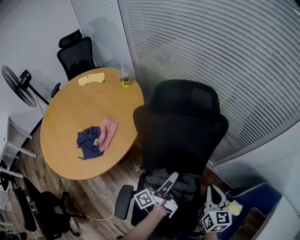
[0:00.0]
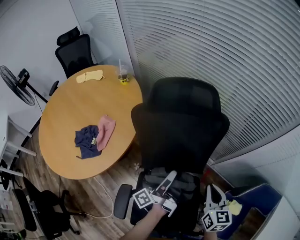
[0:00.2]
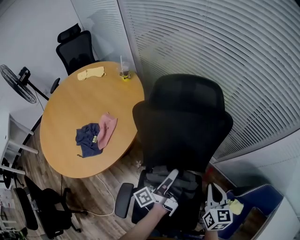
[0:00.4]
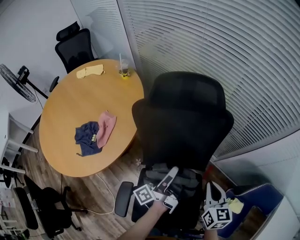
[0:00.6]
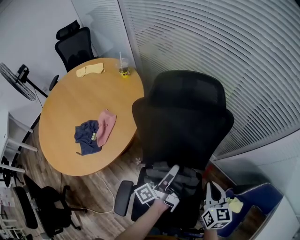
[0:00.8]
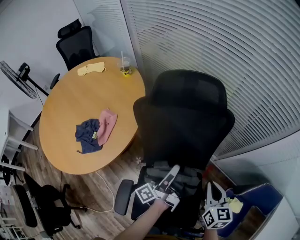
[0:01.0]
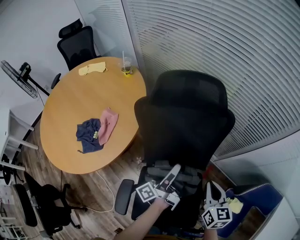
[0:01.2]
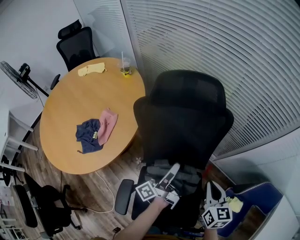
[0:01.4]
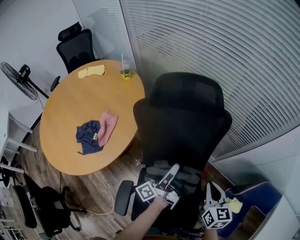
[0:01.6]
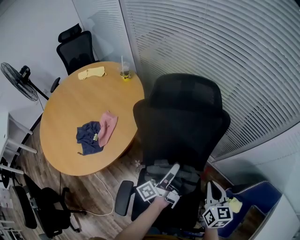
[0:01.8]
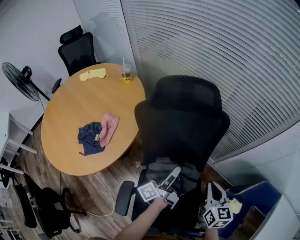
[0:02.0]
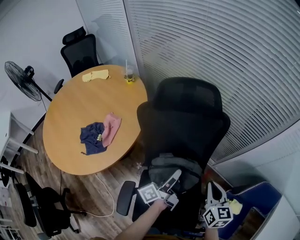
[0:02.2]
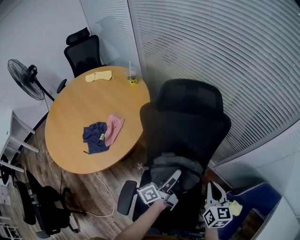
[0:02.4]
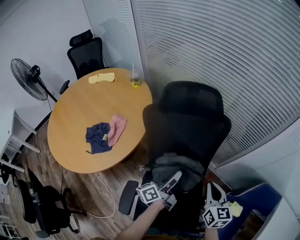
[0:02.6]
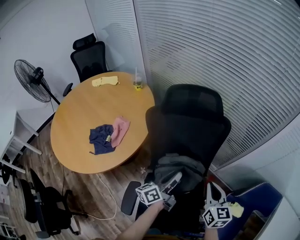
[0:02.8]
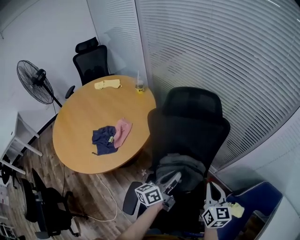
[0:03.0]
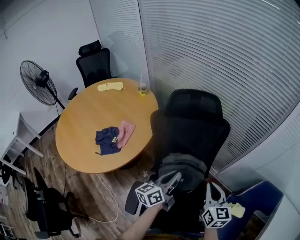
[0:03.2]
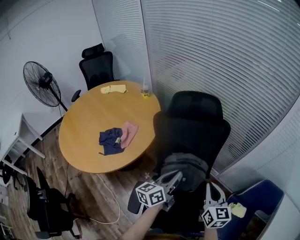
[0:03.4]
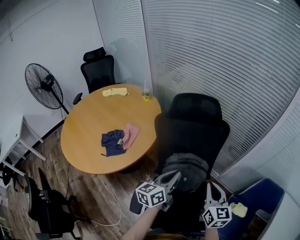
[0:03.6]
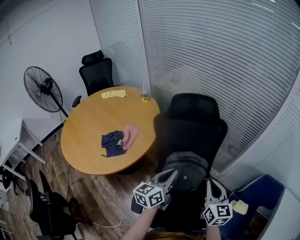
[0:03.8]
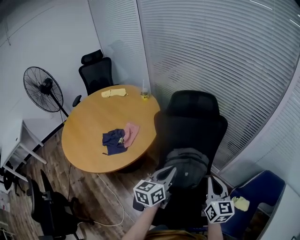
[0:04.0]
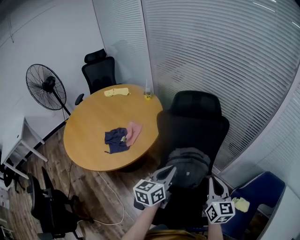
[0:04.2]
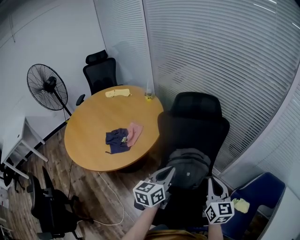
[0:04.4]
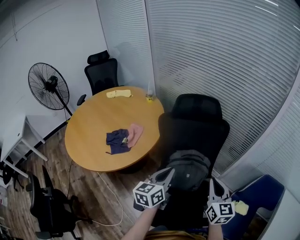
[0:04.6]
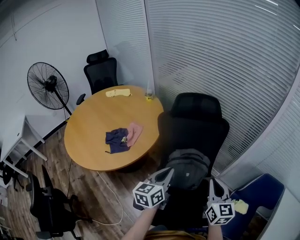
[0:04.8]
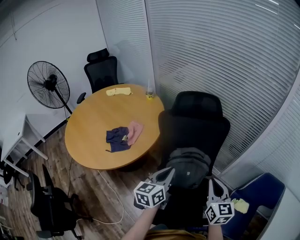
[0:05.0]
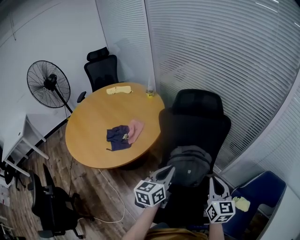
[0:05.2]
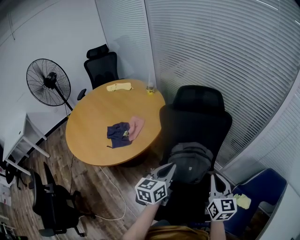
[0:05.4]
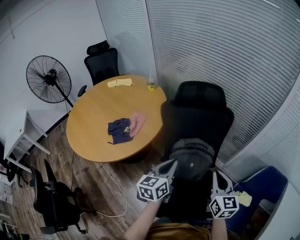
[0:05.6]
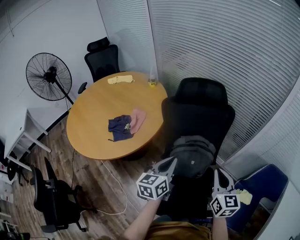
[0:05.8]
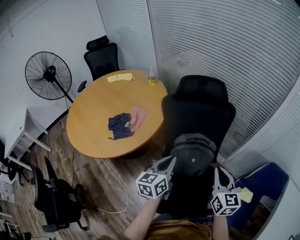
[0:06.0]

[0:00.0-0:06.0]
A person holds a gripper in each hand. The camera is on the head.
0:01.6 to 0:03.0: The right gripper is displaced upward by about 5 cm.
0:03.0 to 0:04.4: The right gripper moves about 10 cm.

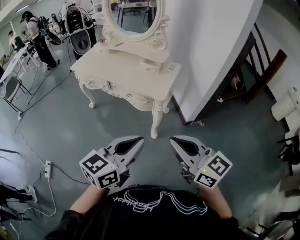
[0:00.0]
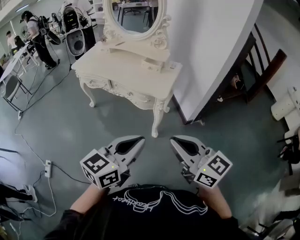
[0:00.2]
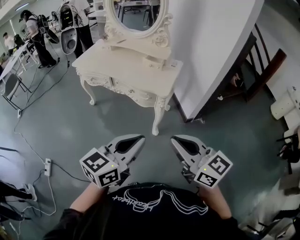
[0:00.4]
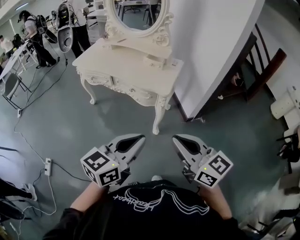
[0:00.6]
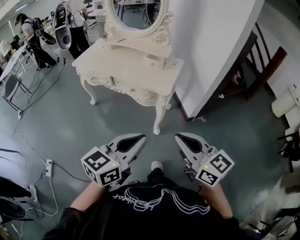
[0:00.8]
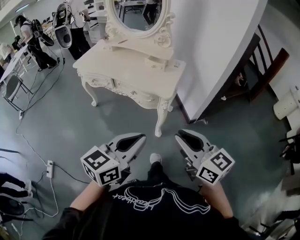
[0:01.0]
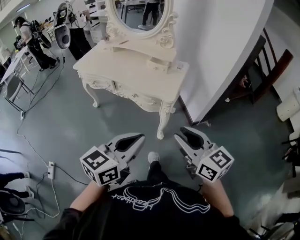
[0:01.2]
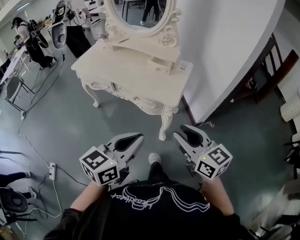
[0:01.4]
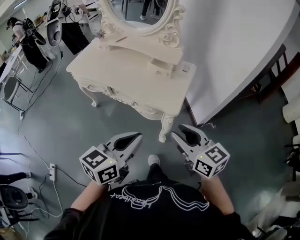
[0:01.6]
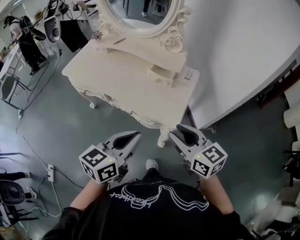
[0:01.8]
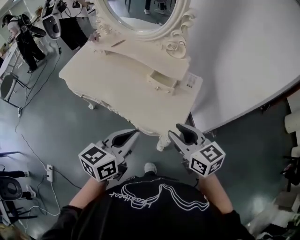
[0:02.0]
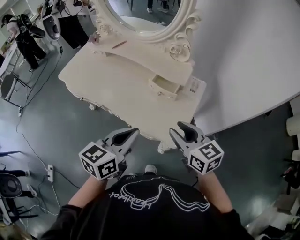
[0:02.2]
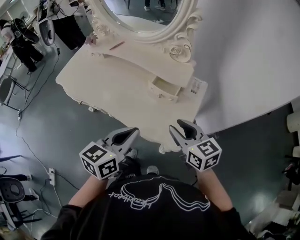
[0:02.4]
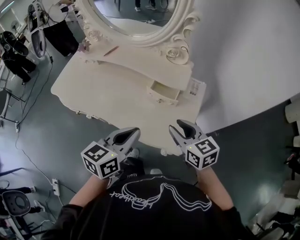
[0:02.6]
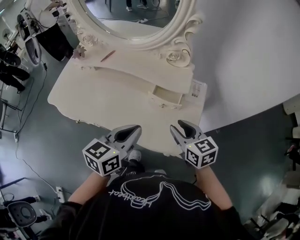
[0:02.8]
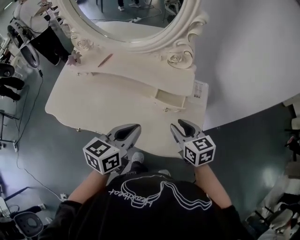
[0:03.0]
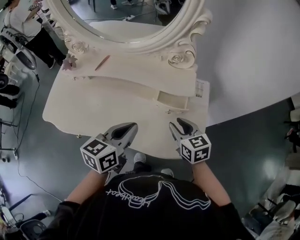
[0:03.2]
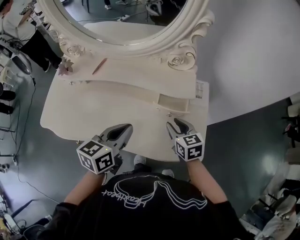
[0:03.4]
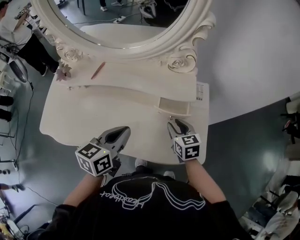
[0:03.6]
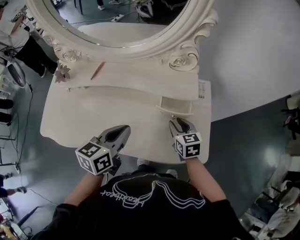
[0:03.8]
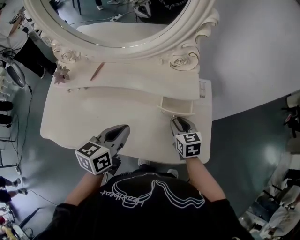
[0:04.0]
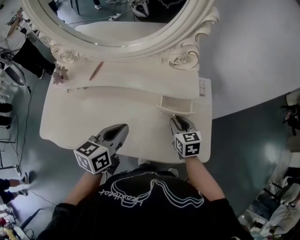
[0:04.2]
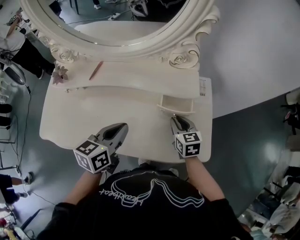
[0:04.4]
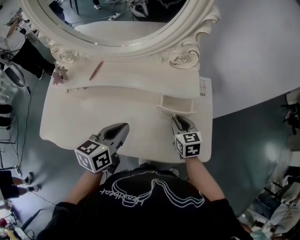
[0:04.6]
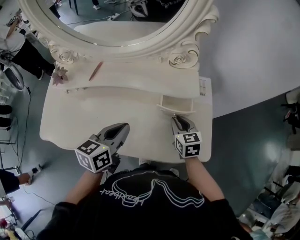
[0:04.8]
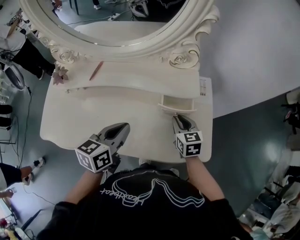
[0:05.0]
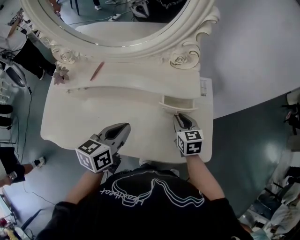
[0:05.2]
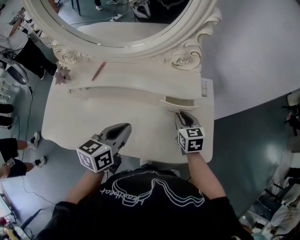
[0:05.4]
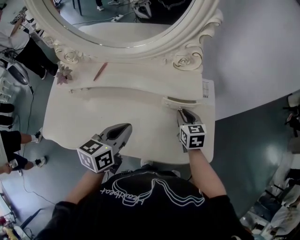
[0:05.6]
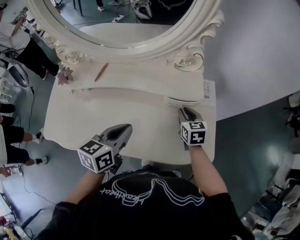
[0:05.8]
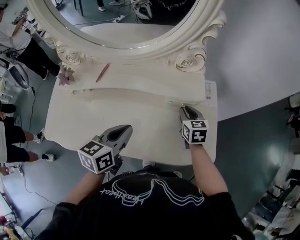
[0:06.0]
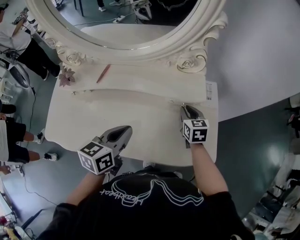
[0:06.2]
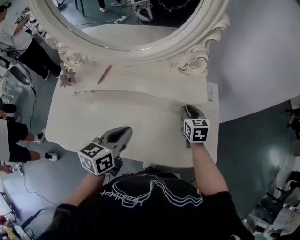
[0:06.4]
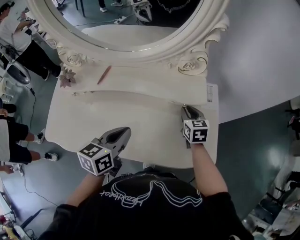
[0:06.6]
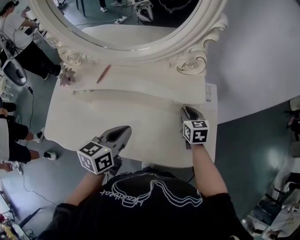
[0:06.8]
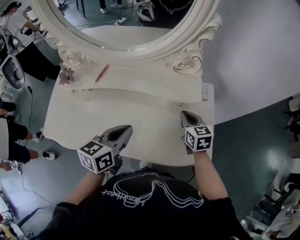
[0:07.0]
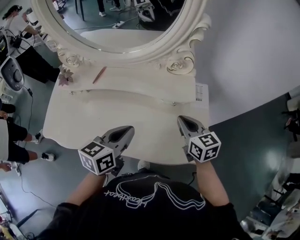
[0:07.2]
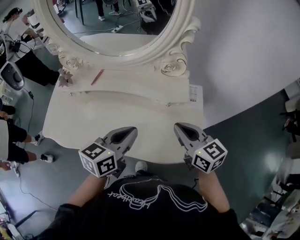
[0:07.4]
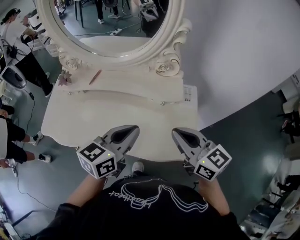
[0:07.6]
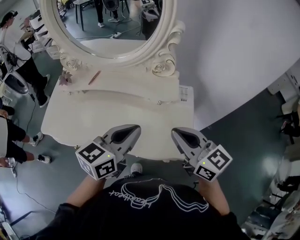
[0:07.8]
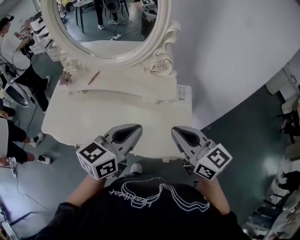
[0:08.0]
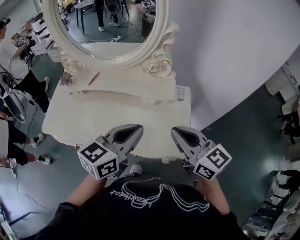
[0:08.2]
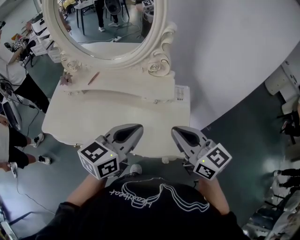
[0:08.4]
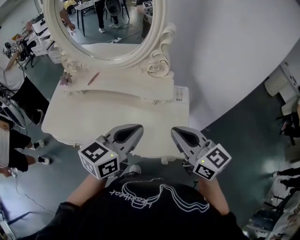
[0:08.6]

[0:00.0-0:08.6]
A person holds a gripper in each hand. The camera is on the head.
0:00.0 to 0:01.4: The left gripper heads forward, covering roughly 10 cm. The right gripper shifts about 15 cm forward and downward, and opens up.
0:01.4 to 0:02.8: Both grippers move forward, about 40 cm. The right gripper swivels roughly 20 degrees.
0:02.8 to 0:04.4: The left gripper is displaced to the left, forward and downward by roughly 20 cm, while the right gripper moves downward, forward and to the left, some 15 cm, and changes its angle by about 30 degrees.
0:04.4 to 0:05.8: The right gripper moves forward, some 5 cm.
0:05.8 to 0:07.2: The right gripper goes some 10 cm upward and backward, and rotates about 20 degrees.
0:07.2 to 0:08.6: The right gripper goes some 20 cm upward and backward, and rotates roughly 20 degrees. Meanwhile the left gripper is displaced to the right, upward and backward by about 20 cm.

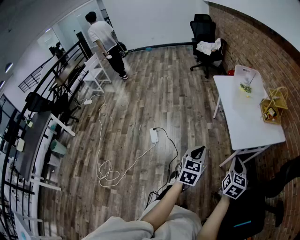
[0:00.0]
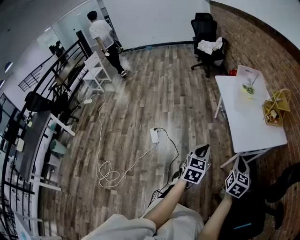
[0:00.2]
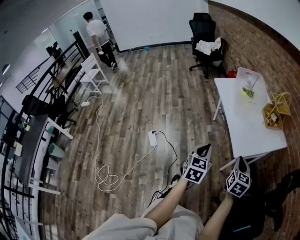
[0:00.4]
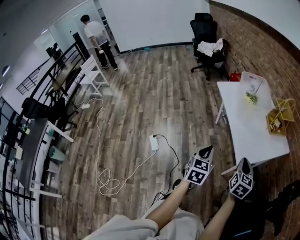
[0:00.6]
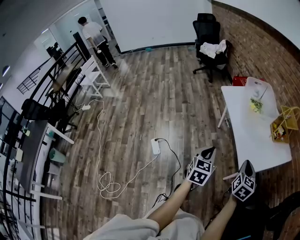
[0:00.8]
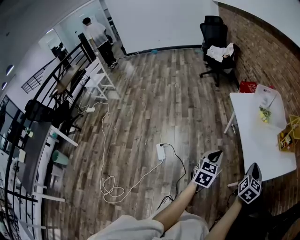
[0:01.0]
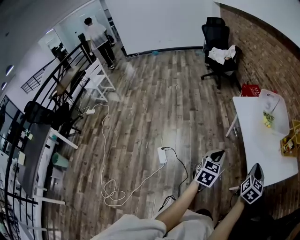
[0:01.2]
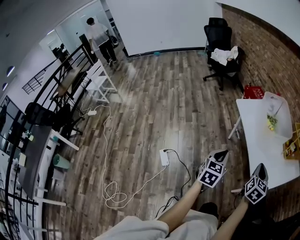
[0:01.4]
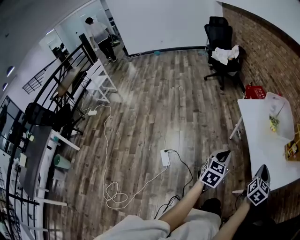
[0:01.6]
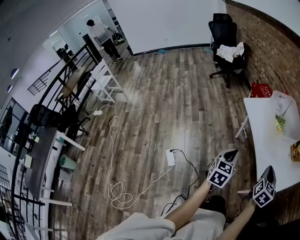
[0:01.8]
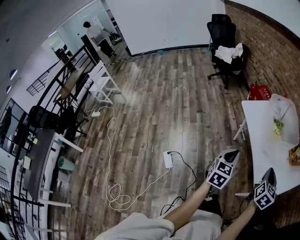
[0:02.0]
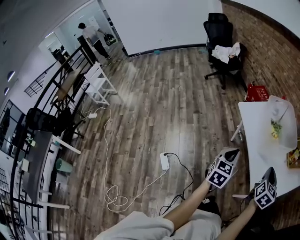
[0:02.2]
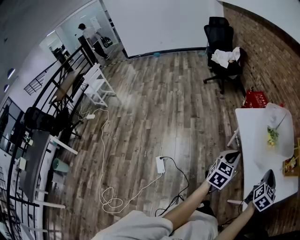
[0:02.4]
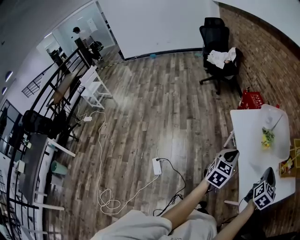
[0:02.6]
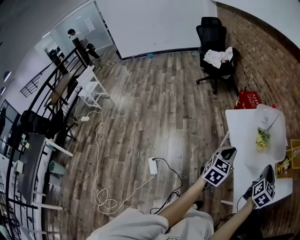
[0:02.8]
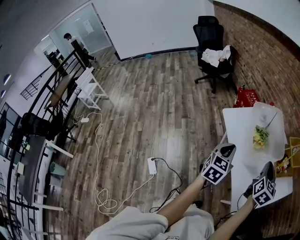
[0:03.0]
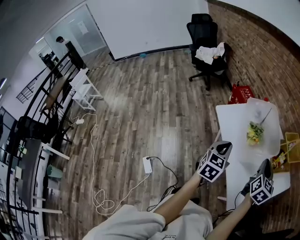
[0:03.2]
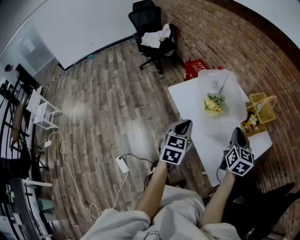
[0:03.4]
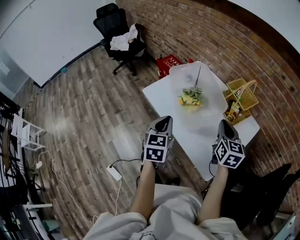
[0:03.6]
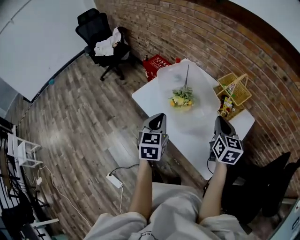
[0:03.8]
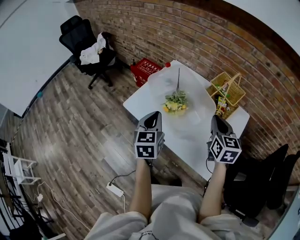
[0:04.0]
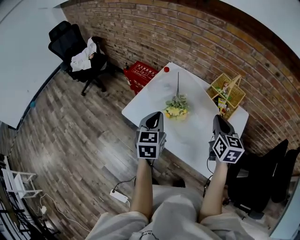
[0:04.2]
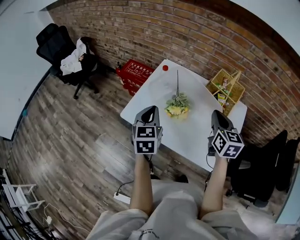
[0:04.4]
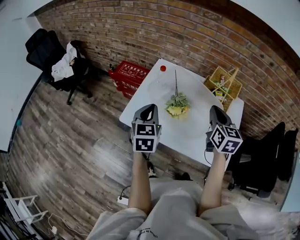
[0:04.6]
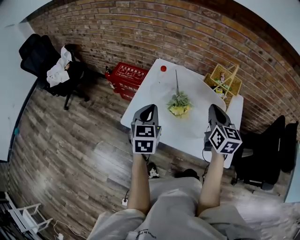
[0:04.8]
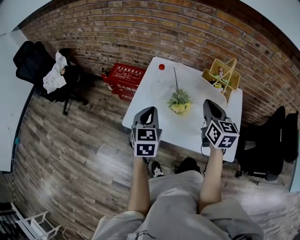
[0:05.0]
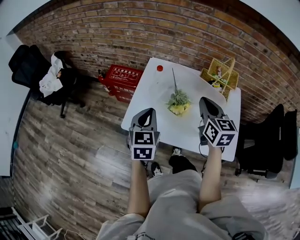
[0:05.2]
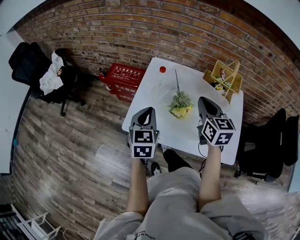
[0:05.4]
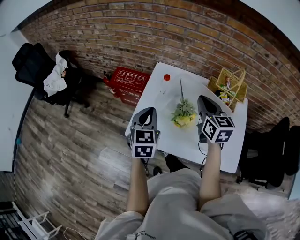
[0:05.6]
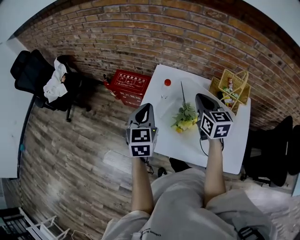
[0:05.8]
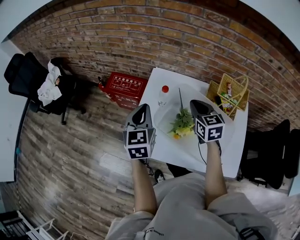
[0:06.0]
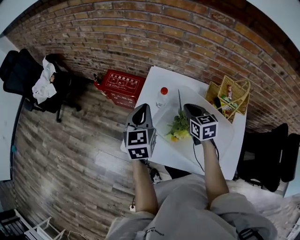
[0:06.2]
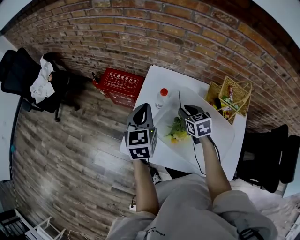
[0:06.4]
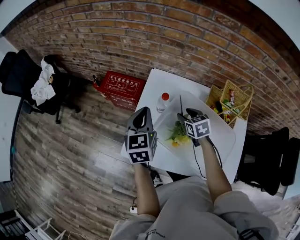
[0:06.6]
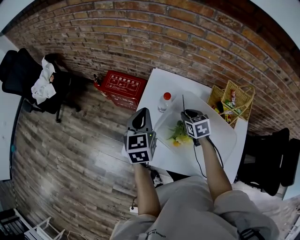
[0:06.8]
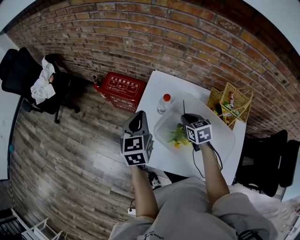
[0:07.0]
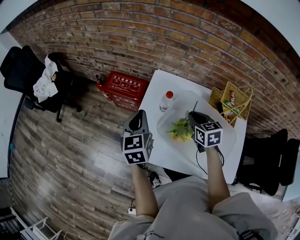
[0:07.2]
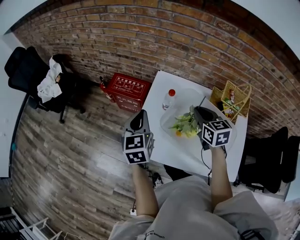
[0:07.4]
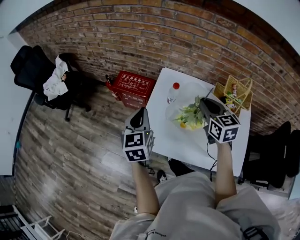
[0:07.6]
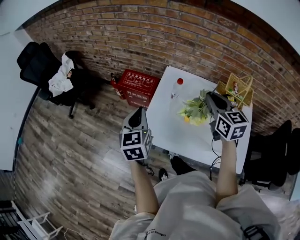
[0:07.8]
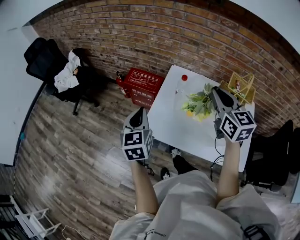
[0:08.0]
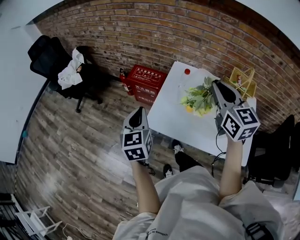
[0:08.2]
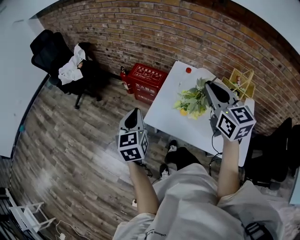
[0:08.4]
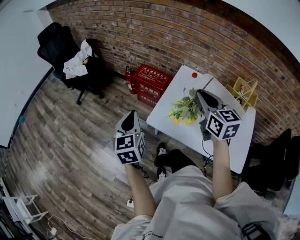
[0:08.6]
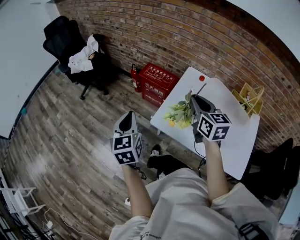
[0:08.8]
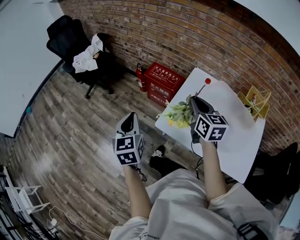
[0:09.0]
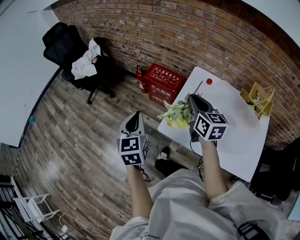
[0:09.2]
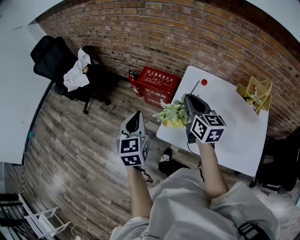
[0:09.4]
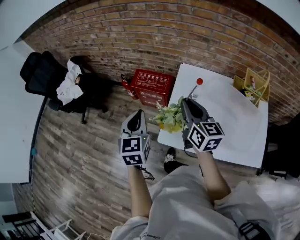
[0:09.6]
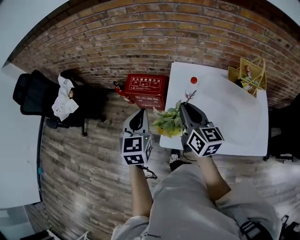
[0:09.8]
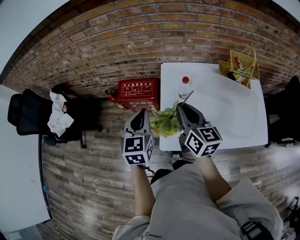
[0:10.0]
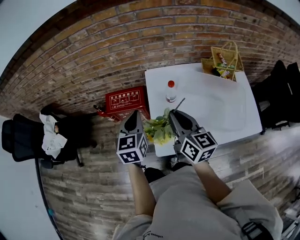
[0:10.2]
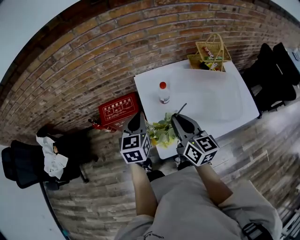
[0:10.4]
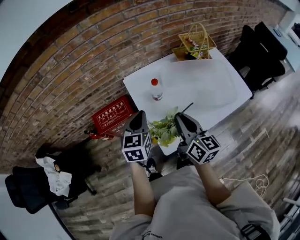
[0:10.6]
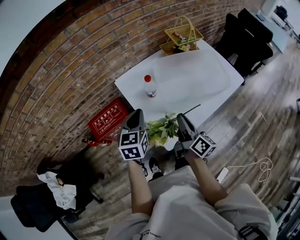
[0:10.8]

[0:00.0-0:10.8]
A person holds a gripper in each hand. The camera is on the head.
0:00.0 to 0:01.6: The two grippers go approximately 30 cm forward and to the left.
0:01.6 to 0:03.0: The grippers both shift forward by approximately 20 cm.
0:03.0 to 0:04.6: The right gripper shifts by some 15 cm, and turns by some 20 degrees. The left gripper moves about 30 cm, and changes its angle by roughly 30 degrees.
0:04.6 to 0:06.2: The right gripper heads forward, downward and to the left, covering approximately 25 cm, and swivels approximately 20 degrees; the left gripper moves forward, approximately 20 cm.
0:06.2 to 0:07.8: The right gripper shifts roughly 20 cm upward and backward, and opens, then closes again. The left gripper goes approximately 15 cm to the left and backward.
0:07.8 to 0:09.2: Both grippers move to the left, roughly 20 cm.
0:09.2 to 0:10.8: The right gripper goes about 10 cm downward, and swivels approximately 80 degrees. The left gripper changes place by some 30 cm, and swivels approximately 70 degrees.
